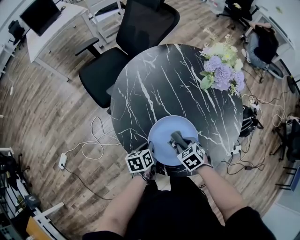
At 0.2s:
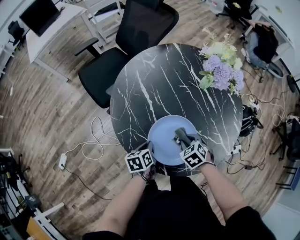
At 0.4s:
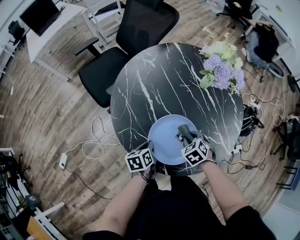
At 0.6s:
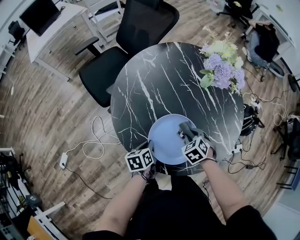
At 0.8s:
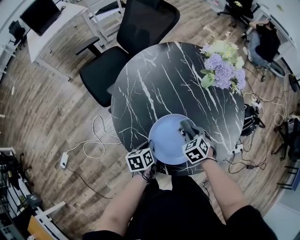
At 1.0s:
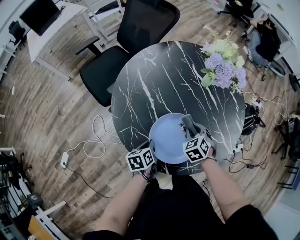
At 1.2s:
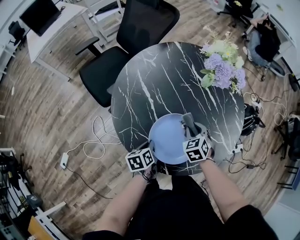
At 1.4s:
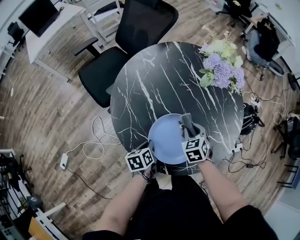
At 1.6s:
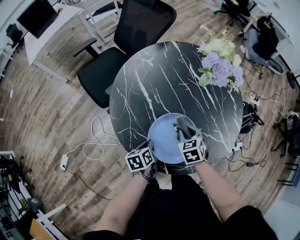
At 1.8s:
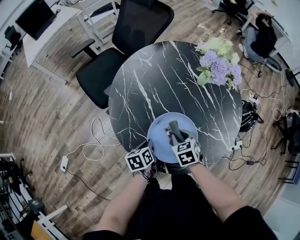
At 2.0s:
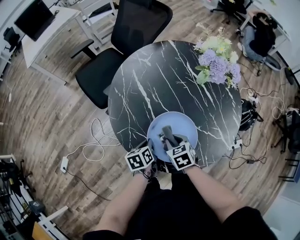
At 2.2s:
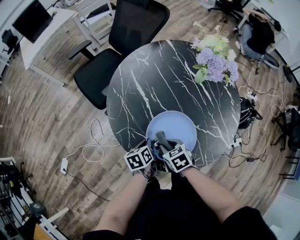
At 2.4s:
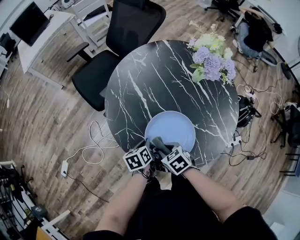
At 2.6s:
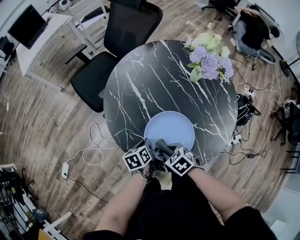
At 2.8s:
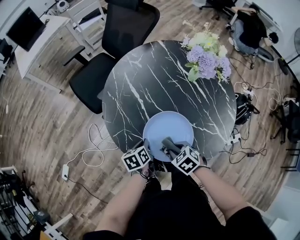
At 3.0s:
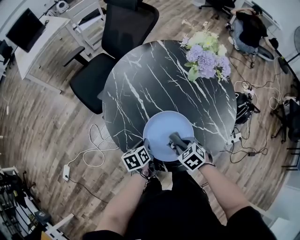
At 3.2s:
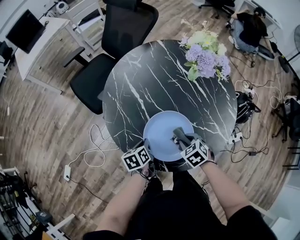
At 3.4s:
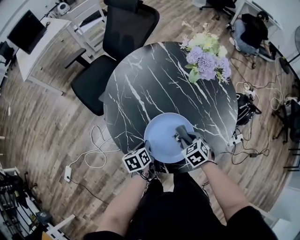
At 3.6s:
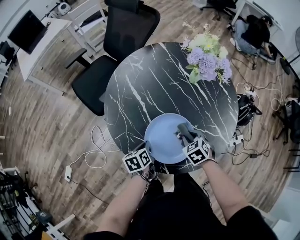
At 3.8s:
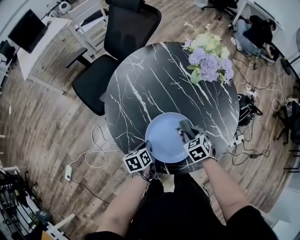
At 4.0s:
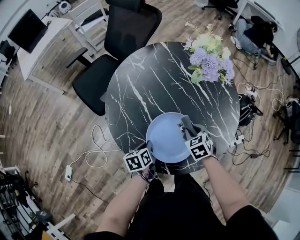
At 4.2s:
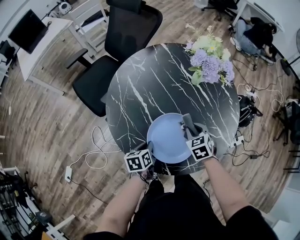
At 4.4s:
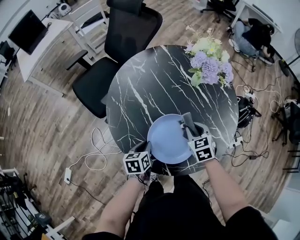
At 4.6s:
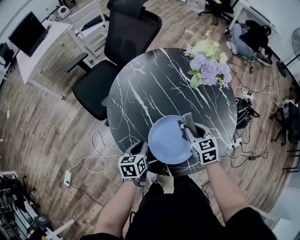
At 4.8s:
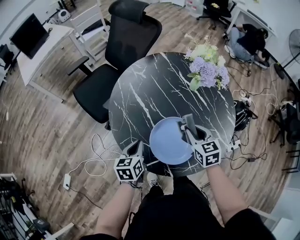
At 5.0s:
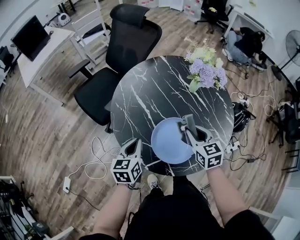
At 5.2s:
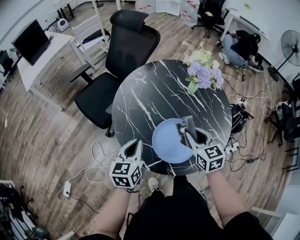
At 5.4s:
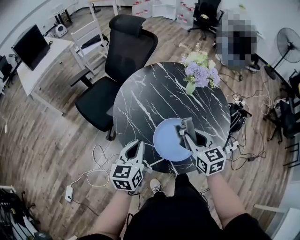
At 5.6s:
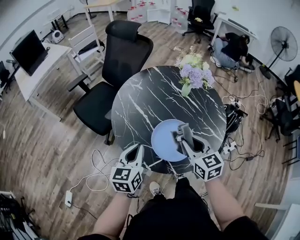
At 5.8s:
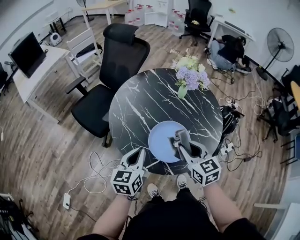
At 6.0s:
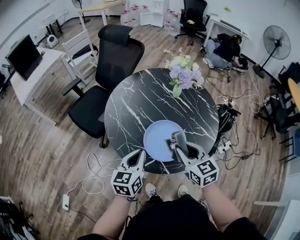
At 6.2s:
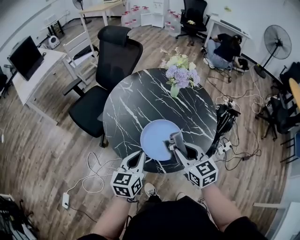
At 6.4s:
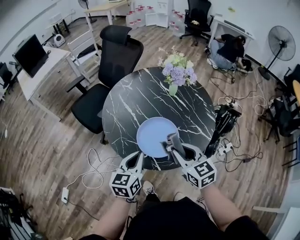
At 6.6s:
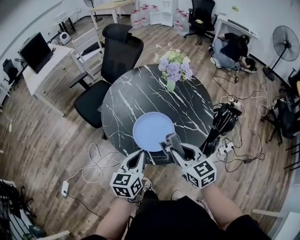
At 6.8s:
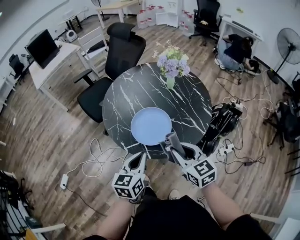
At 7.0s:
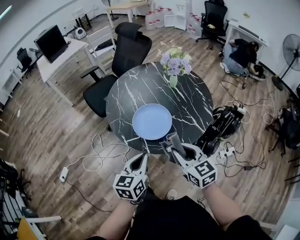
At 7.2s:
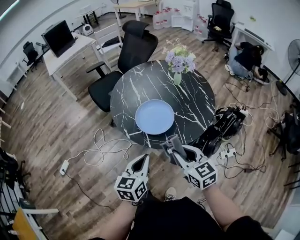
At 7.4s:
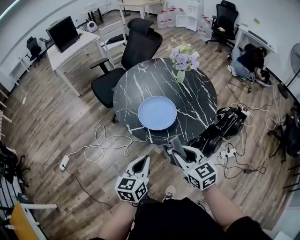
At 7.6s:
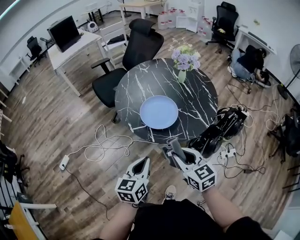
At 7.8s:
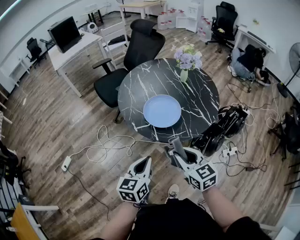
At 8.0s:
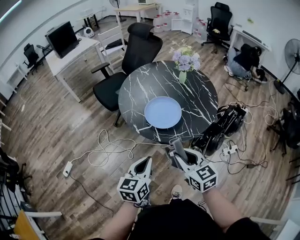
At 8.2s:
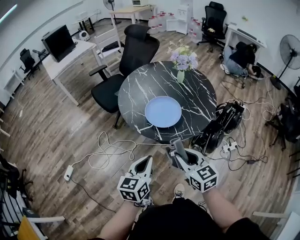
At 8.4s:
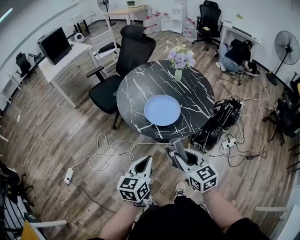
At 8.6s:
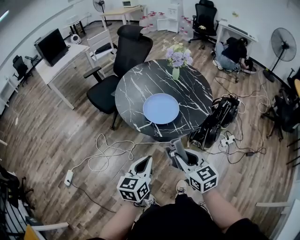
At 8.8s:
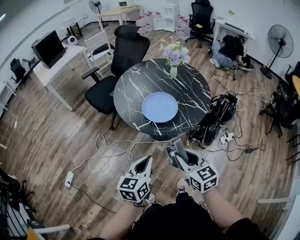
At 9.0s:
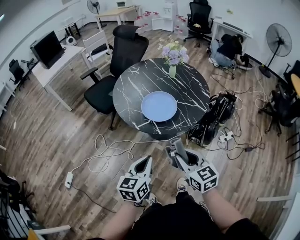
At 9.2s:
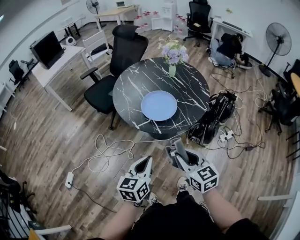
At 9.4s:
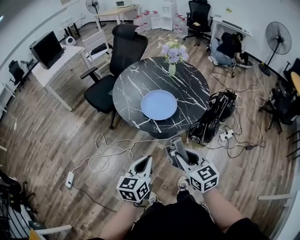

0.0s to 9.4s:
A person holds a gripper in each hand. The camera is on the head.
0.0s to 1.6s: The right gripper shifts some 5 cm forward, and turns by some 20 degrees.
1.6s to 3.2s: The right gripper shifts roughly 10 cm backward, and reaches about 10 cm to the left, then returns.
3.2s to 4.8s: The right gripper moves upward and forward, roughly 15 cm, and changes its angle by about 40 degrees. The left gripper heads upward, covering some 10 cm, and swivels approximately 20 degrees.
4.8s to 6.2s: The right gripper goes approximately 20 cm backward and upward; the left gripper is displaced upward, backward and to the right by roughly 15 cm, and swivels roughly 20 degrees.
6.2s to 7.8s: The two grippers go some 25 cm backward.
7.8s to 9.4s: The left gripper travels to the left by approximately 5 cm, while the right gripper travels backward by some 10 cm.

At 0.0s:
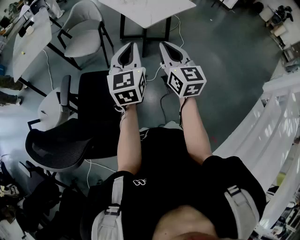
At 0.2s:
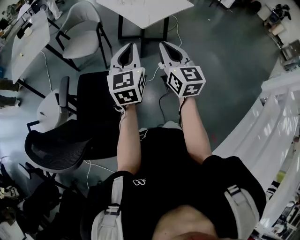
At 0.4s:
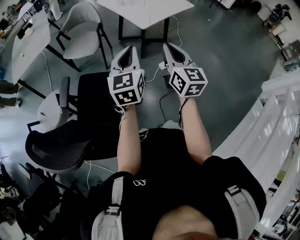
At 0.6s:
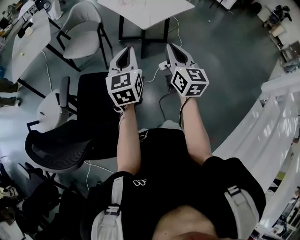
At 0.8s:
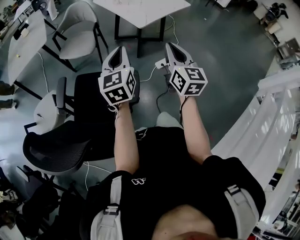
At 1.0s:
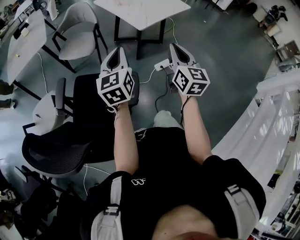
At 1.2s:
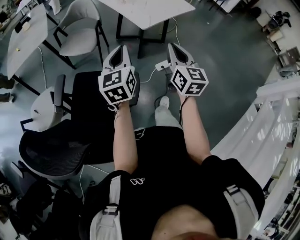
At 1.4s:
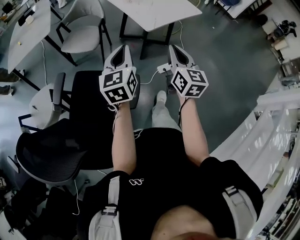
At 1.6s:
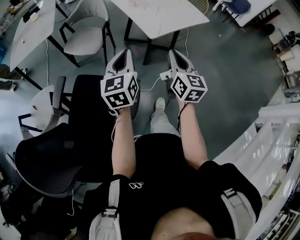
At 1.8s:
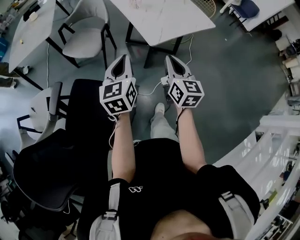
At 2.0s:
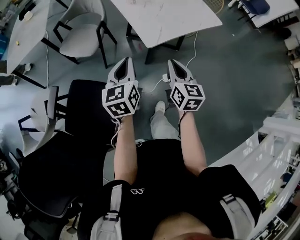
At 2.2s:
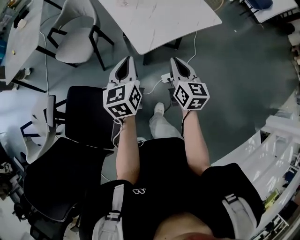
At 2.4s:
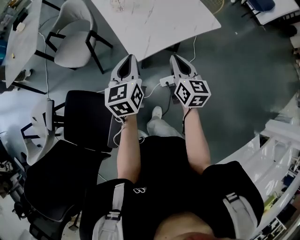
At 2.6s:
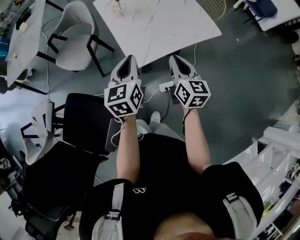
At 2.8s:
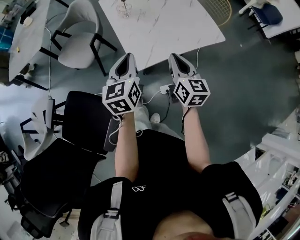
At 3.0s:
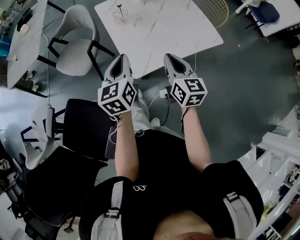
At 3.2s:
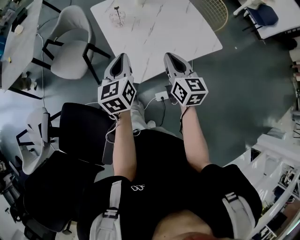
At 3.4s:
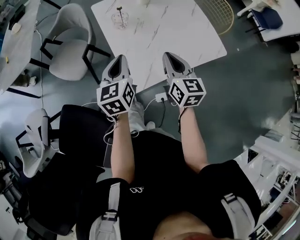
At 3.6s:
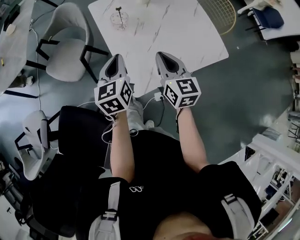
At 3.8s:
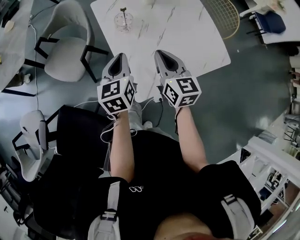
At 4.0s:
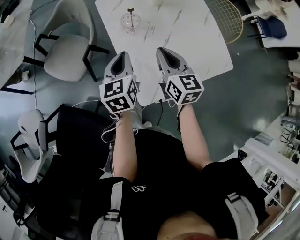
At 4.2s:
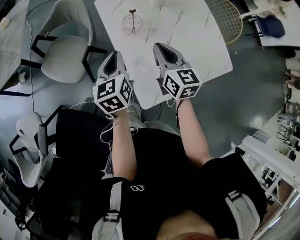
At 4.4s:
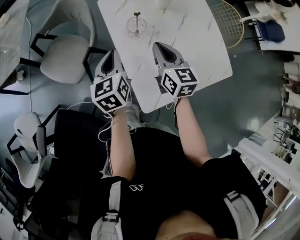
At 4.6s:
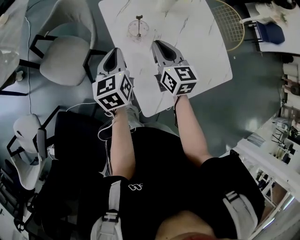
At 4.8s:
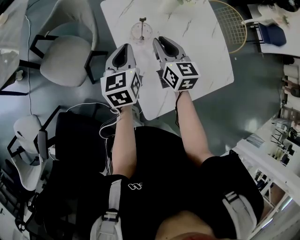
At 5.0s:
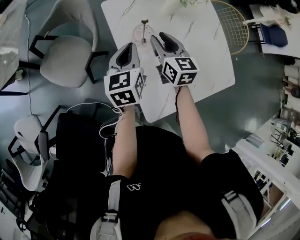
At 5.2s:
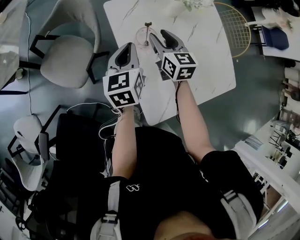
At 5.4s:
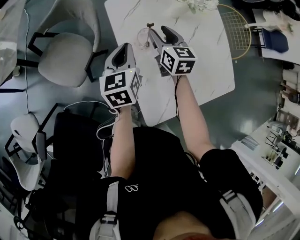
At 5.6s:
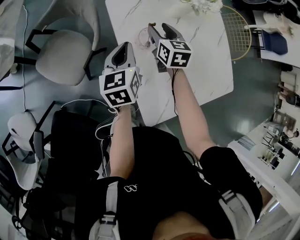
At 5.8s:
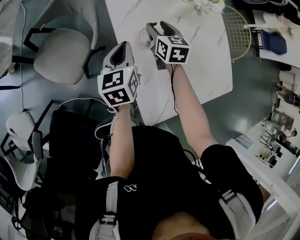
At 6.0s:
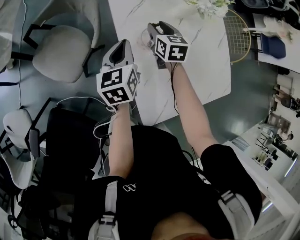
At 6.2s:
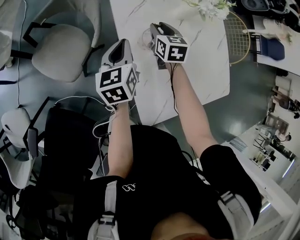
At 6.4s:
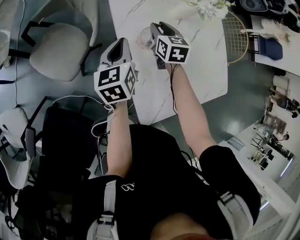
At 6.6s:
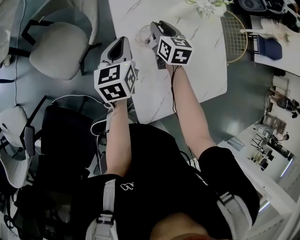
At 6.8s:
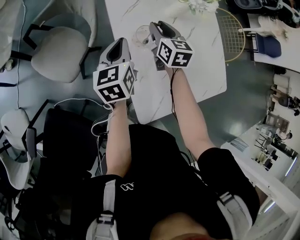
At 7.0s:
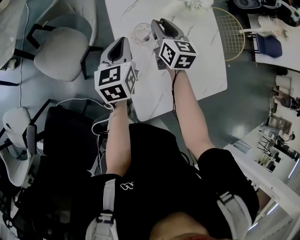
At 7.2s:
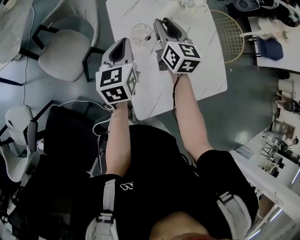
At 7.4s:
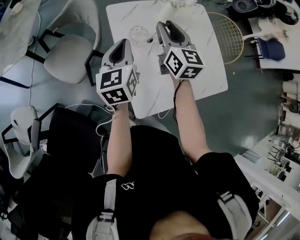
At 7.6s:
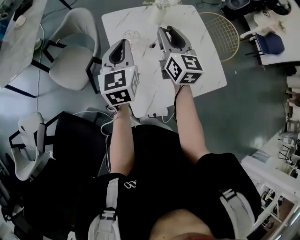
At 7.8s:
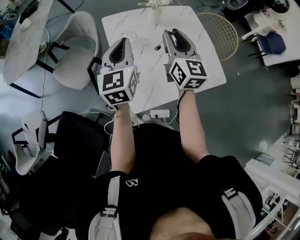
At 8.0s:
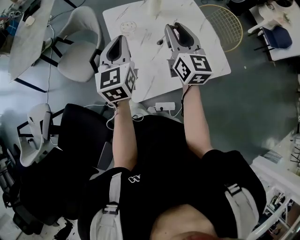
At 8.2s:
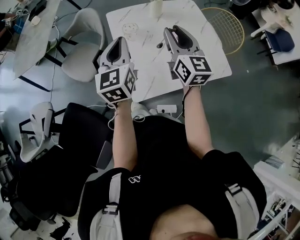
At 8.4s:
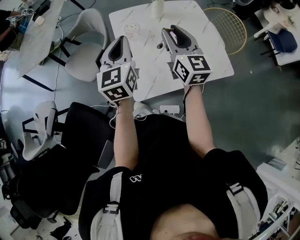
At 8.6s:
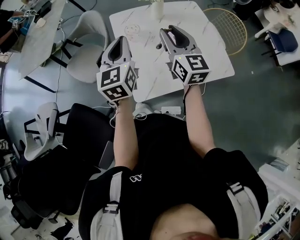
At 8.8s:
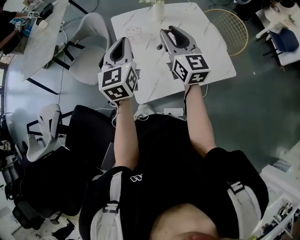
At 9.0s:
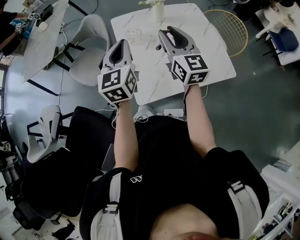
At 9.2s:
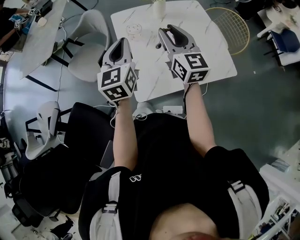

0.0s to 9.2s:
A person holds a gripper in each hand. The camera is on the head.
0.0s to 1.6s: Both grippers travel together forward and downward, roughly 10 cm.
1.6s to 3.0s: Both grippers move forward and to the right, some 35 cm.
3.0s to 4.6s: The grippers both shift forward by approximately 30 cm.
4.6s to 6.2s: The right gripper goes approximately 20 cm forward and downward, rotates some 20 degrees, and opens its fingers. The left gripper heads forward, covering roughly 10 cm.
6.2s to 7.6s: The right gripper moves upward and backward, about 30 cm, and points its fingers about 40 degrees further upward. Meanwhile the left gripper shifts about 25 cm upward, backward and to the right, and rotates approximately 30 degrees.
7.6s to 9.2s: The two grippers go roughly 10 cm backward.

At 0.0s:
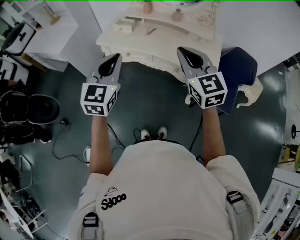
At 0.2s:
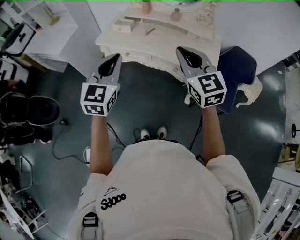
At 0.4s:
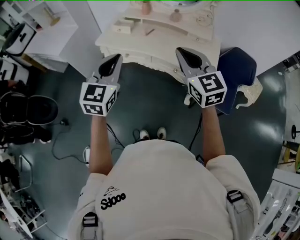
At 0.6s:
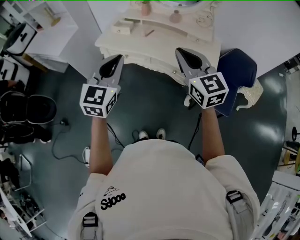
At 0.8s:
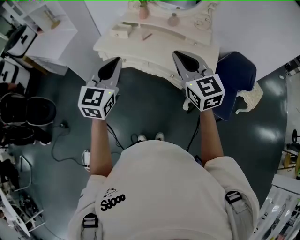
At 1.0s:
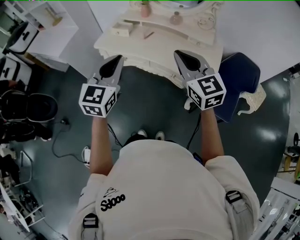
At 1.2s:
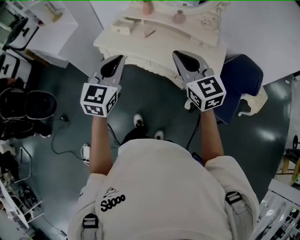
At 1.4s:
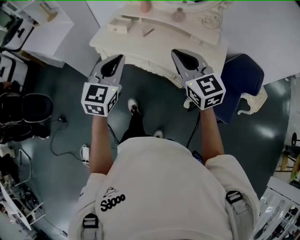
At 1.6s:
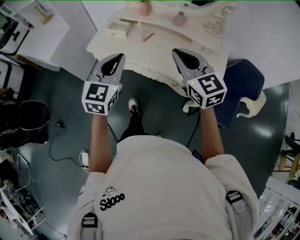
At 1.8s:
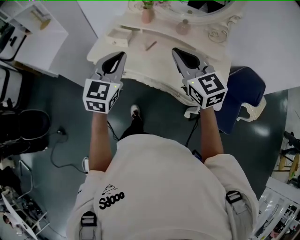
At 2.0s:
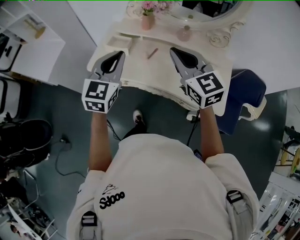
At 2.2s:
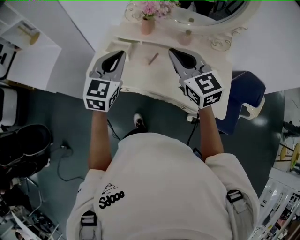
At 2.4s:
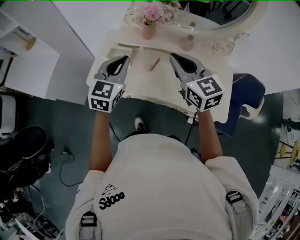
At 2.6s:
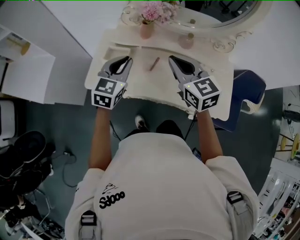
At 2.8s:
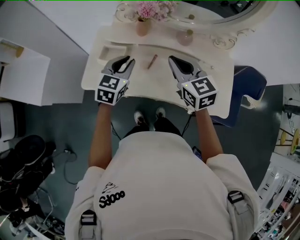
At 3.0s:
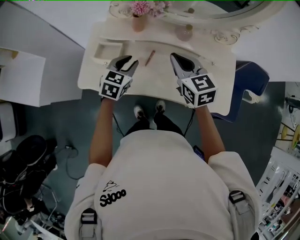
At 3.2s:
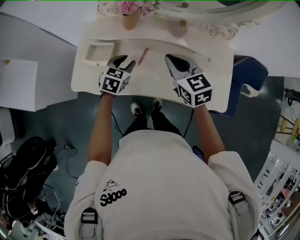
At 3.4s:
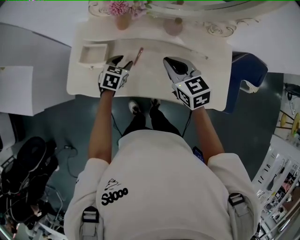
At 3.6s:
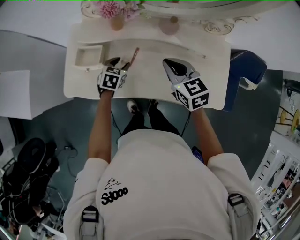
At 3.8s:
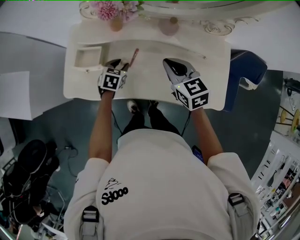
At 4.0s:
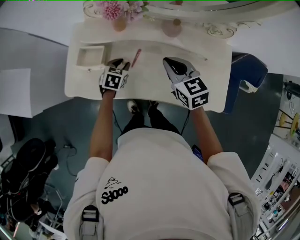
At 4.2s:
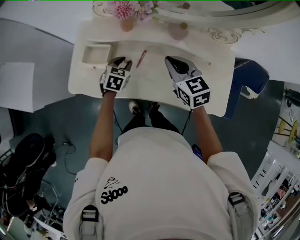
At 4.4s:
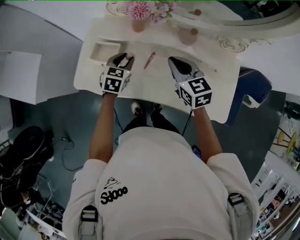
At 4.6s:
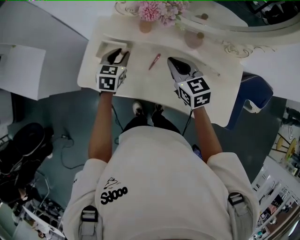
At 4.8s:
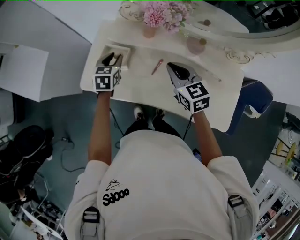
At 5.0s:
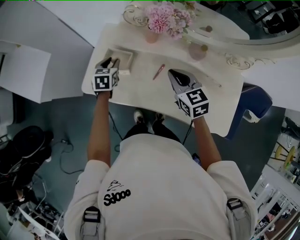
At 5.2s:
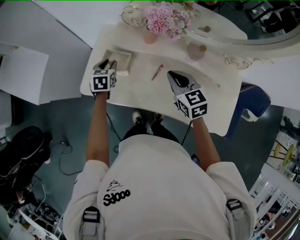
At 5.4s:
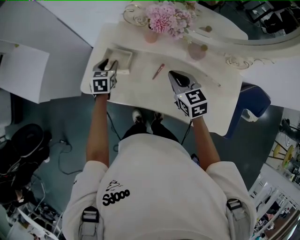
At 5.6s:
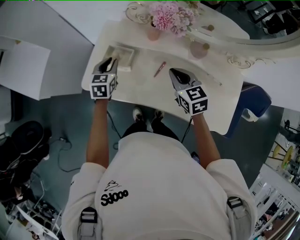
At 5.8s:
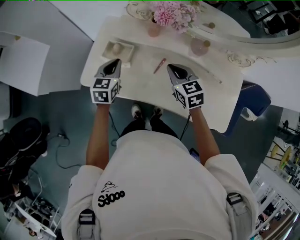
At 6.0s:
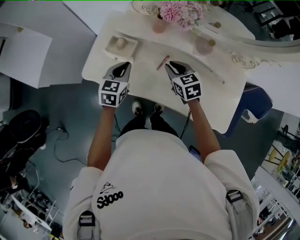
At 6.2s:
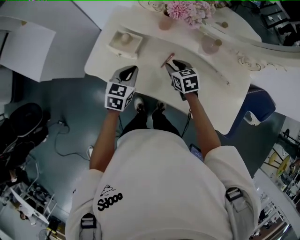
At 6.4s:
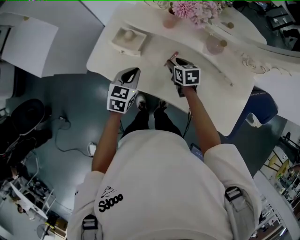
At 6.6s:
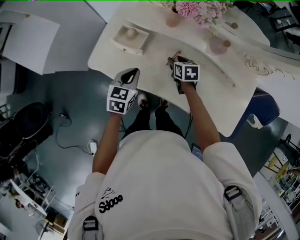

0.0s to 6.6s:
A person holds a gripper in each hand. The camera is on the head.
0.0s to 1.6s: The two grippers go approximately 15 cm forward.
1.6s to 3.2s: Both grippers move forward and downward, some 35 cm. The left gripper angles its fingers downward, by roughly 30 degrees, and opens up. The right gripper changes its angle by some 30 degrees.
3.2s to 5.0s: The right gripper changes place by some 5 cm; the left gripper heads to the left and forward, covering about 20 cm, and turns by roughly 30 degrees.
5.0s to 6.6s: The left gripper shifts roughly 15 cm backward, and closes, while the right gripper travels downward by approximately 20 cm, turns by roughly 30 degrees, and opens its fingers.
